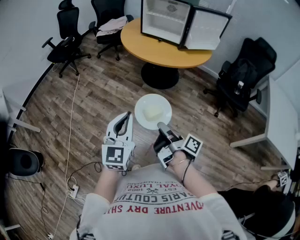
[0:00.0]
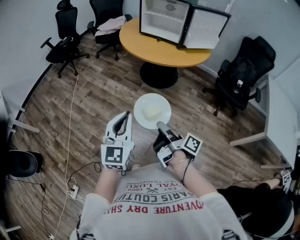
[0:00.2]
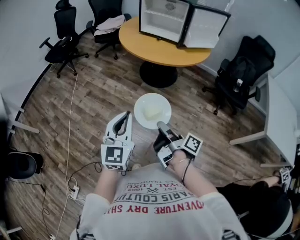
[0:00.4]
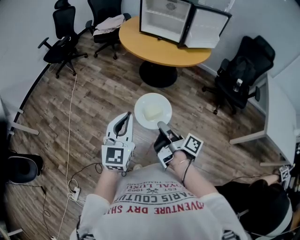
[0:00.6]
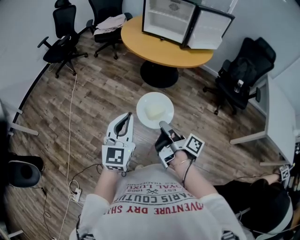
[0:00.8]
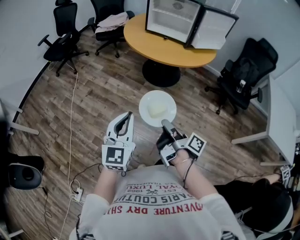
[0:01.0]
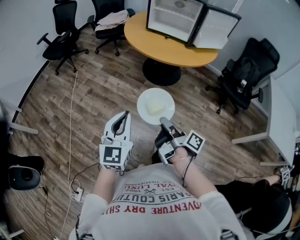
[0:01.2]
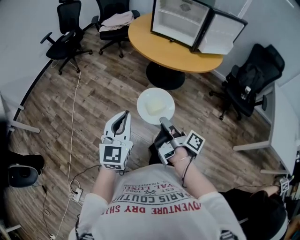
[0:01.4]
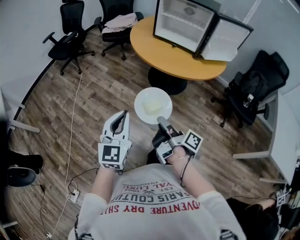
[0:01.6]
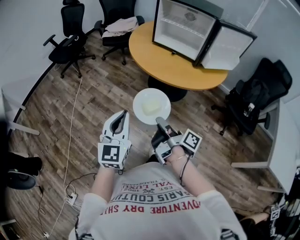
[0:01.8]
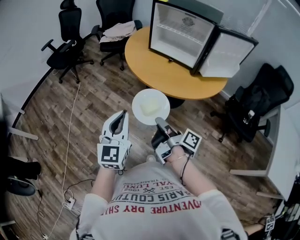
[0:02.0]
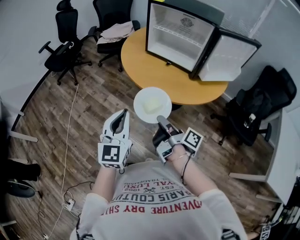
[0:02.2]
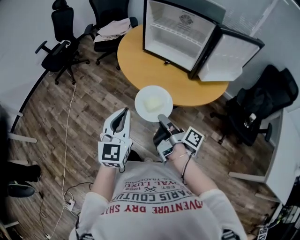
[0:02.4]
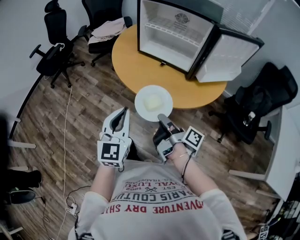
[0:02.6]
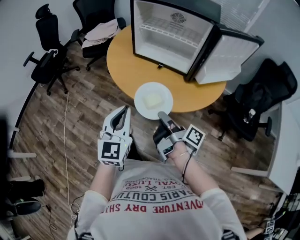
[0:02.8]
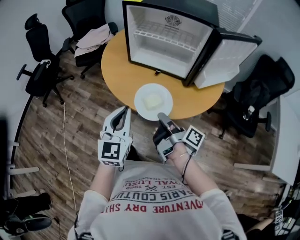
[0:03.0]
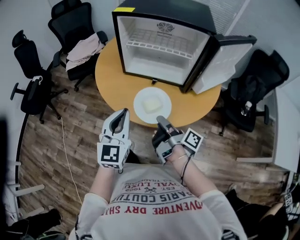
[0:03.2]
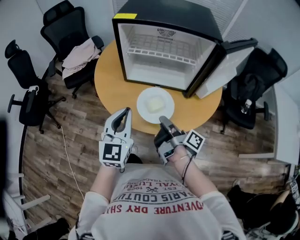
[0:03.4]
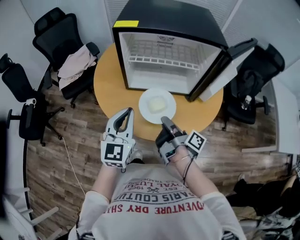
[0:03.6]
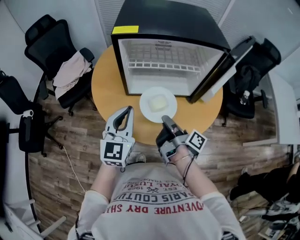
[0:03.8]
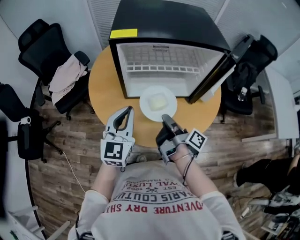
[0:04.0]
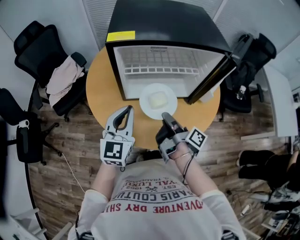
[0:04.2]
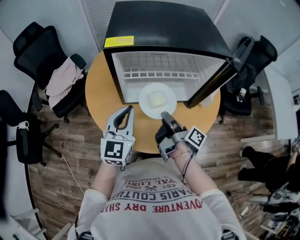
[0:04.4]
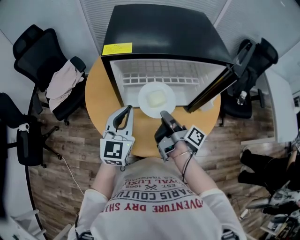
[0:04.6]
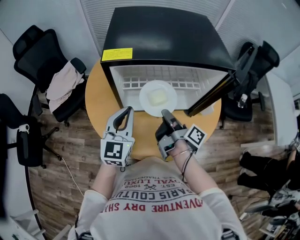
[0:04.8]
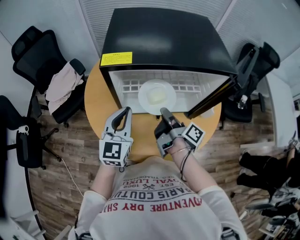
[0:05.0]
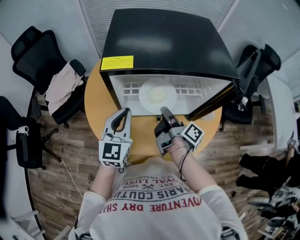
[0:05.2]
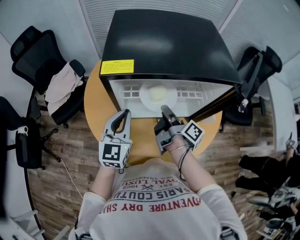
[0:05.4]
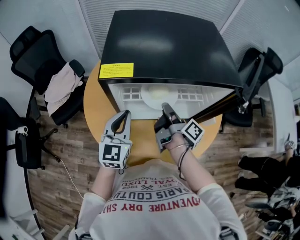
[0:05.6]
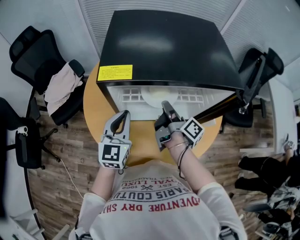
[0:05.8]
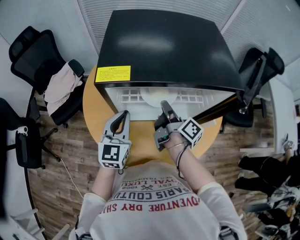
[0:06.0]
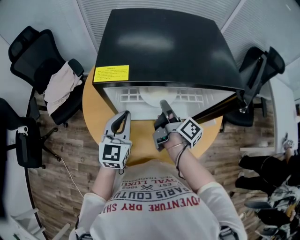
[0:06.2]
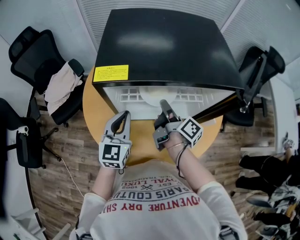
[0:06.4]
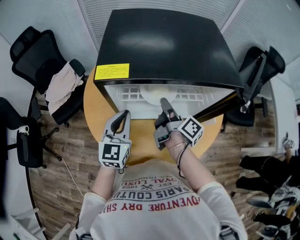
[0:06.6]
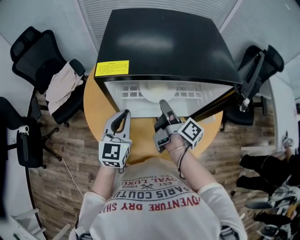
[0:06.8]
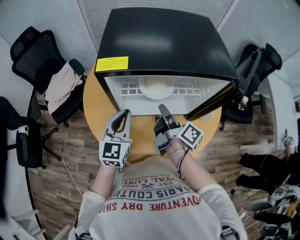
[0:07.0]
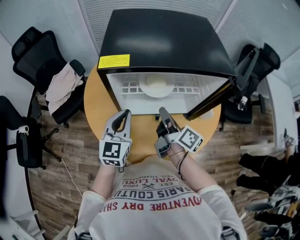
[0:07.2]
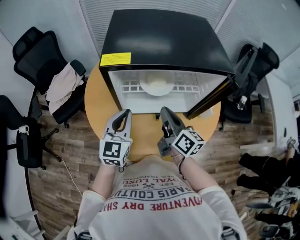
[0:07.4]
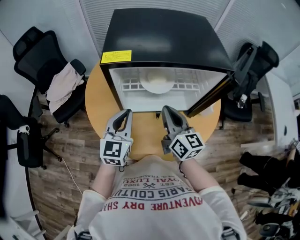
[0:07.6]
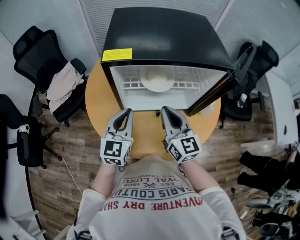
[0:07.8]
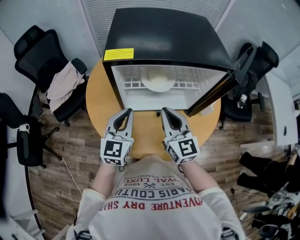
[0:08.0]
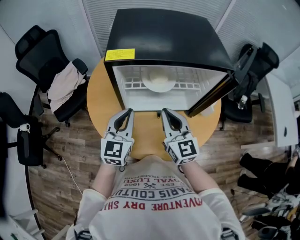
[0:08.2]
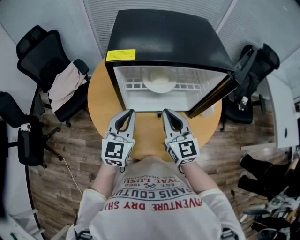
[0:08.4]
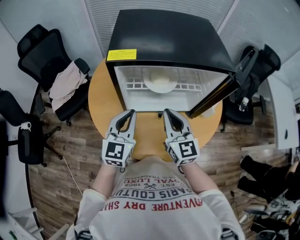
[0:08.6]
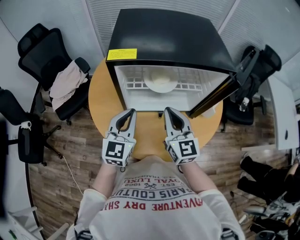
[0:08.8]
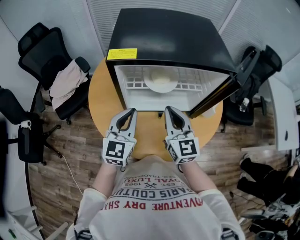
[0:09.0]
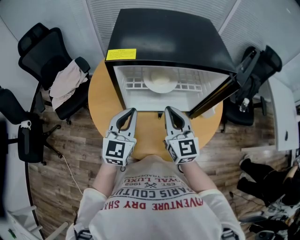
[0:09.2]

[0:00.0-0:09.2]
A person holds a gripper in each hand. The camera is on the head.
0:00.0 to 0:01.6: The left gripper ends up some 15 cm from where it was.
0:01.6 to 0:03.0: The left gripper shifts by approximately 40 cm.
0:03.0 to 0:04.6: The left gripper moves approximately 30 cm, and turns by approximately 30 degrees.
0:04.6 to 0:06.2: The left gripper shifts by approximately 10 cm.
0:06.2 to 0:07.6: The left gripper shifts by some 5 cm.

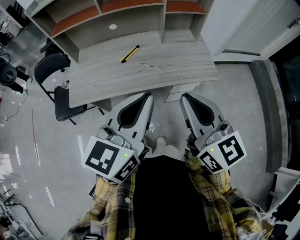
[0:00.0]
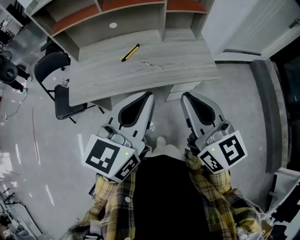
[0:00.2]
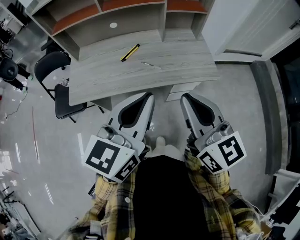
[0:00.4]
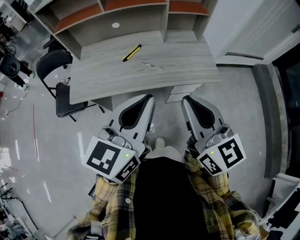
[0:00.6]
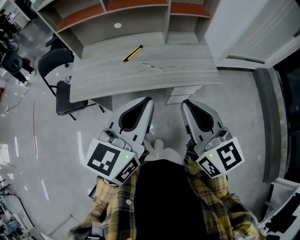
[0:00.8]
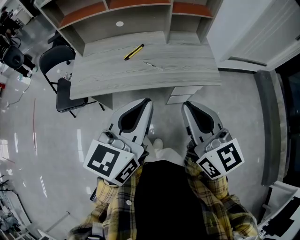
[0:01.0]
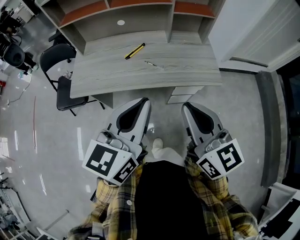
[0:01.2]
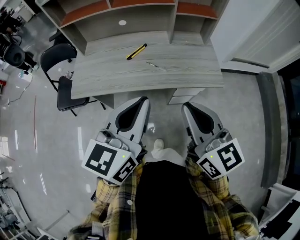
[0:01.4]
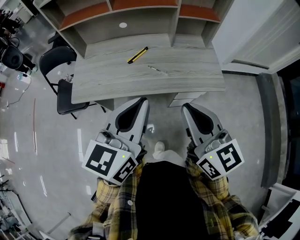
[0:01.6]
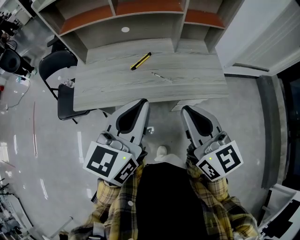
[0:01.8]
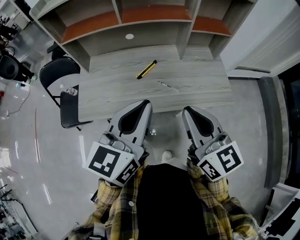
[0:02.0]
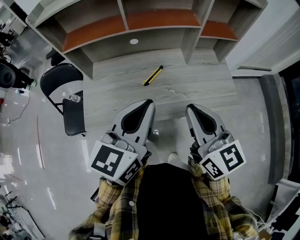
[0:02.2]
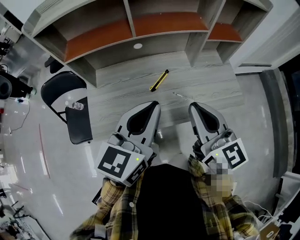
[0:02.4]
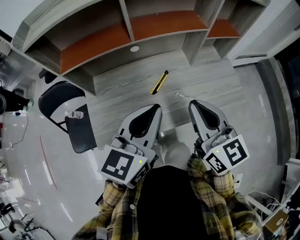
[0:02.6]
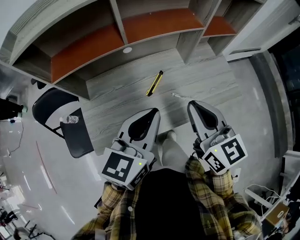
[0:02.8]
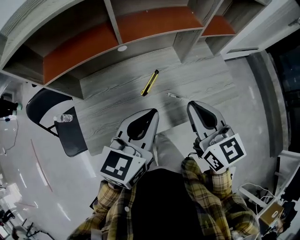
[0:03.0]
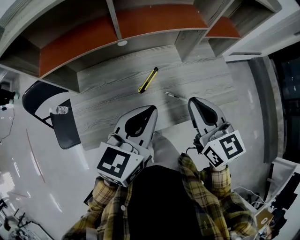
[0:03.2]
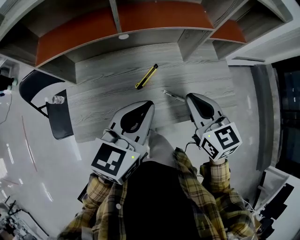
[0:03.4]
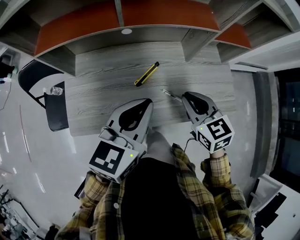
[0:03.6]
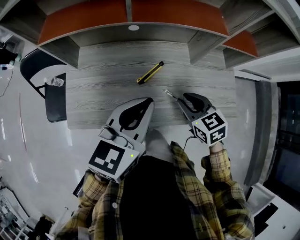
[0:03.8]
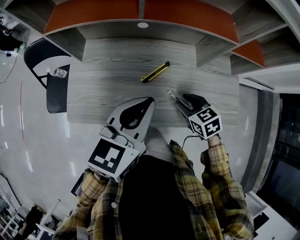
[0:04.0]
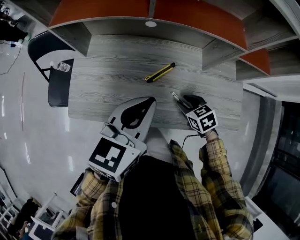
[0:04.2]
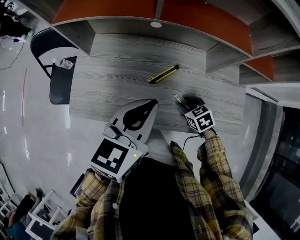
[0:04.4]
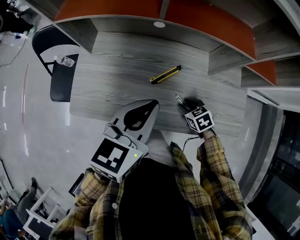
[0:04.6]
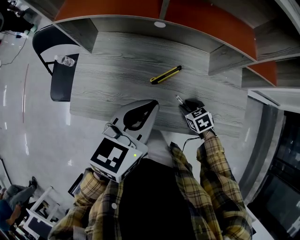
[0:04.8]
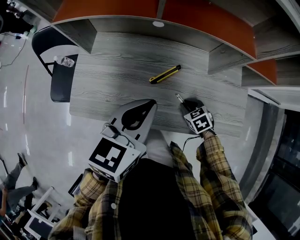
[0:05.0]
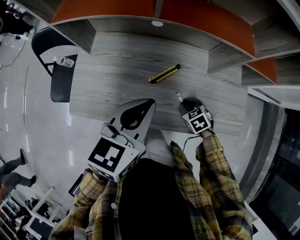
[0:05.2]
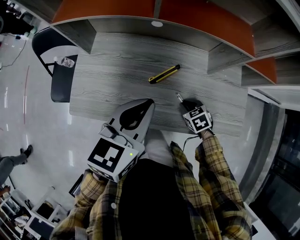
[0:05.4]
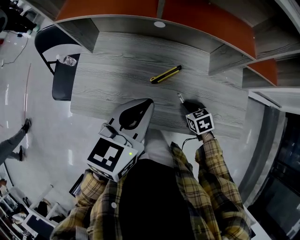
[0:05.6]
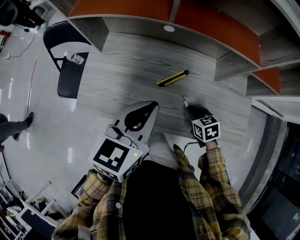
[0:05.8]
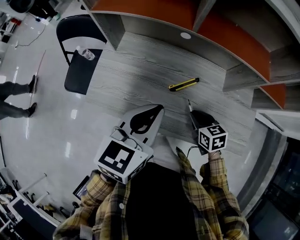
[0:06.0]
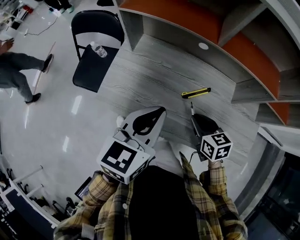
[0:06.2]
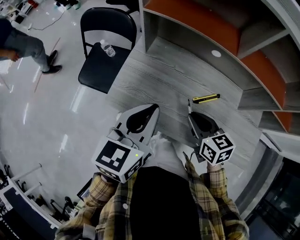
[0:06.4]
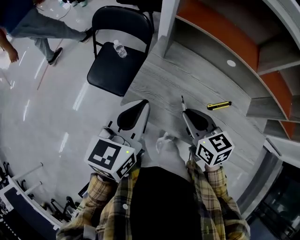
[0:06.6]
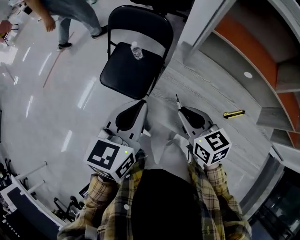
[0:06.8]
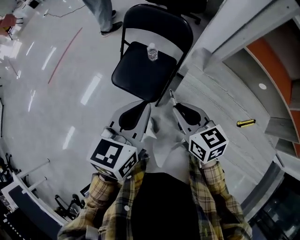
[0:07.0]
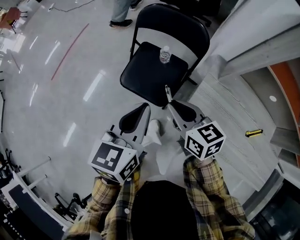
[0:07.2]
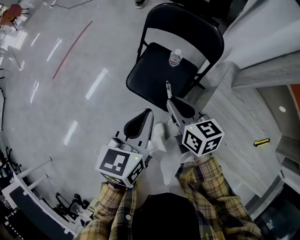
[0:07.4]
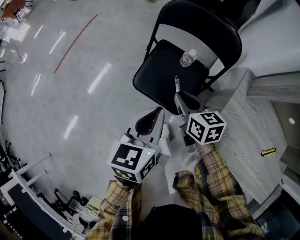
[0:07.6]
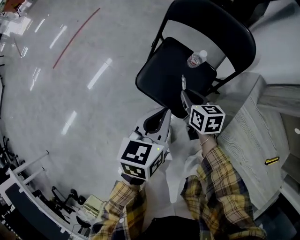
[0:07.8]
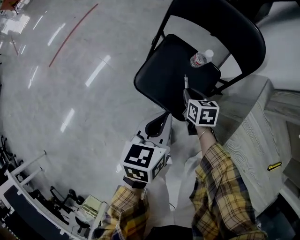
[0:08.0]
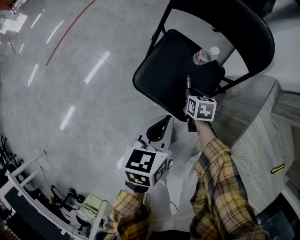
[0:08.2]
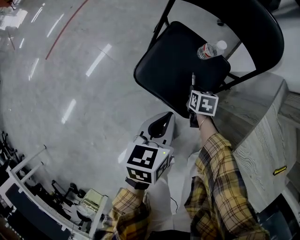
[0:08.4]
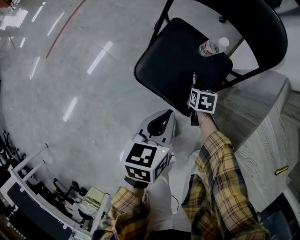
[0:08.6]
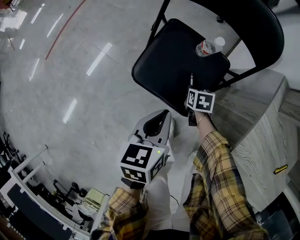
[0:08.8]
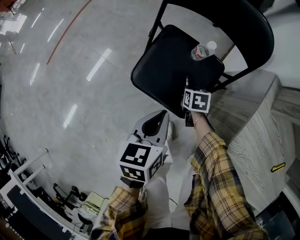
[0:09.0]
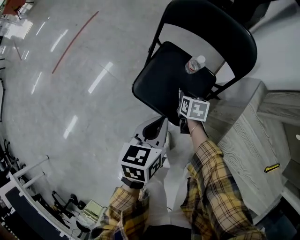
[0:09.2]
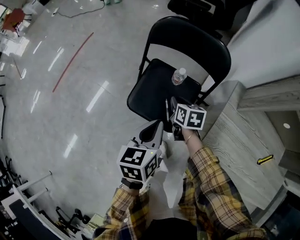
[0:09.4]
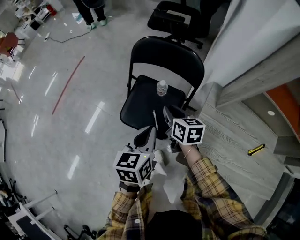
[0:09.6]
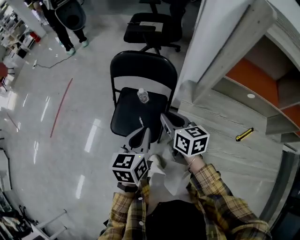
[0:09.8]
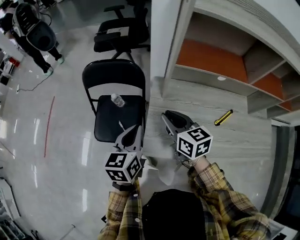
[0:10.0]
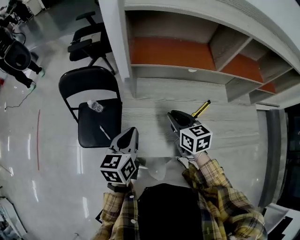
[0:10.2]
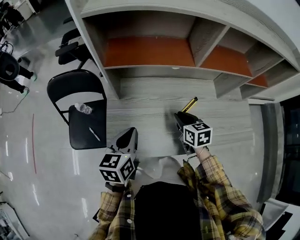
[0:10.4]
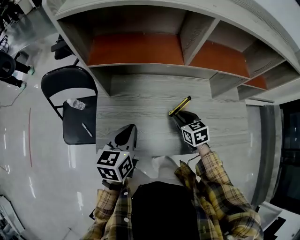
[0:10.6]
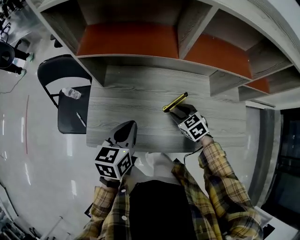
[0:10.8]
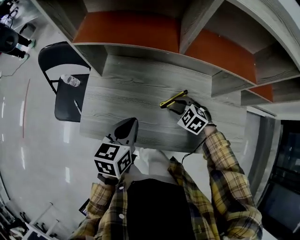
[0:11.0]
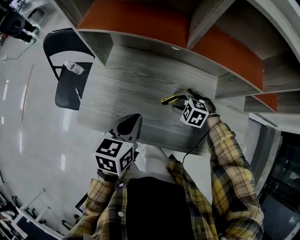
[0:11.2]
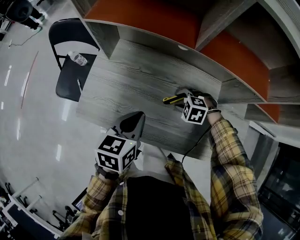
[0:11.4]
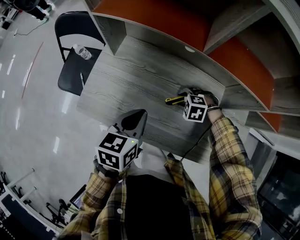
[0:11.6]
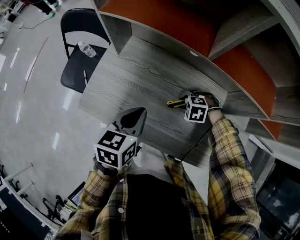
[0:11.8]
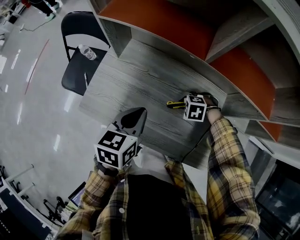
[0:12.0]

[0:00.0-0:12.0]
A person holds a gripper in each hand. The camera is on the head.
0:00.0 to 0:01.6: The grippers stay close to where they were, moving slightly.
0:01.6 to 0:03.0: Both grippers travel together forward and to the left, about 25 cm. The left gripper rotates approximately 20 degrees.
0:03.0 to 0:04.4: The right gripper goes approximately 30 cm downward, tilts its fingers some 40 degrees downward, and opens its fingers; the left gripper changes place by some 5 cm, and rotates roughly 20 degrees.
0:04.4 to 0:06.0: The right gripper is displaced upward by approximately 5 cm, and closes its fingers.
0:06.0 to 0:07.6: The pair of grippers is taken approximately 60 cm. The left gripper changes its angle by roughly 30 degrees, while the right gripper turns by approximately 20 degrees.
0:07.6 to 0:09.0: The left gripper moves downward, approximately 15 cm. Meanwhile the right gripper is displaced downward by approximately 30 cm, and tips its fingers downward by some 30 degrees.
0:09.0 to 0:10.4: The left gripper changes place by roughly 50 cm, and changes its angle by roughly 40 degrees. Meanwhile the right gripper ends up some 70 cm from where it was, and turns by roughly 40 degrees.
0:10.4 to 0:12.0: The right gripper travels downward by about 15 cm, and rotates around the line of its fingers by approximately 90 degrees, counterclockwise from behind, while the left gripper changes place by approximately 15 cm.

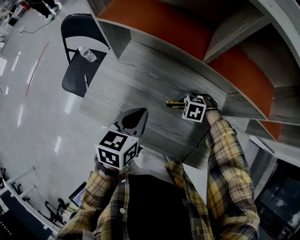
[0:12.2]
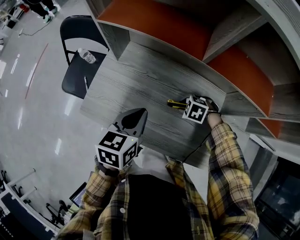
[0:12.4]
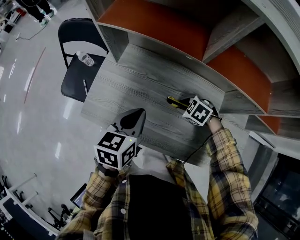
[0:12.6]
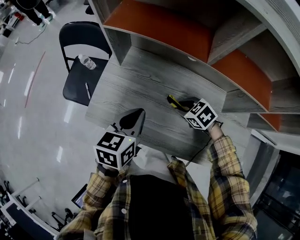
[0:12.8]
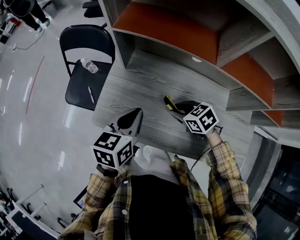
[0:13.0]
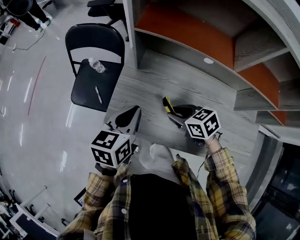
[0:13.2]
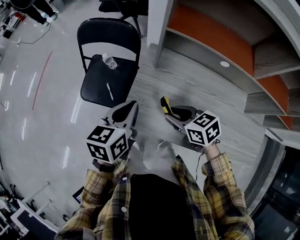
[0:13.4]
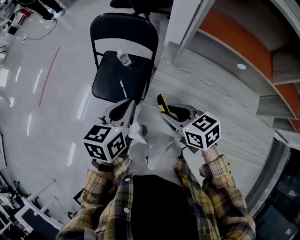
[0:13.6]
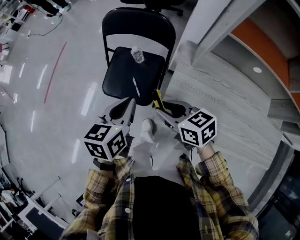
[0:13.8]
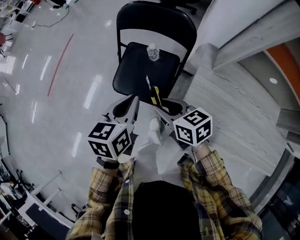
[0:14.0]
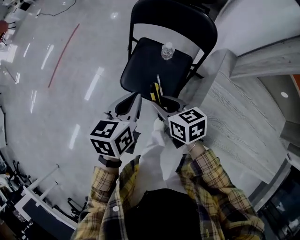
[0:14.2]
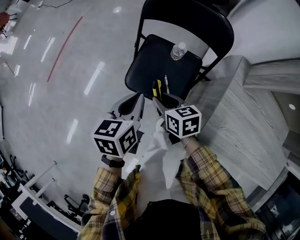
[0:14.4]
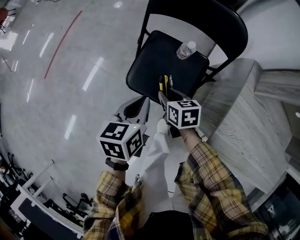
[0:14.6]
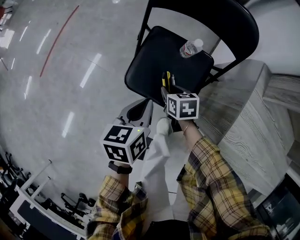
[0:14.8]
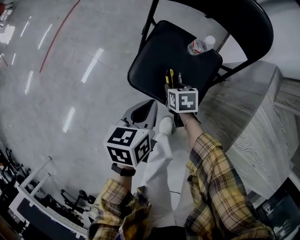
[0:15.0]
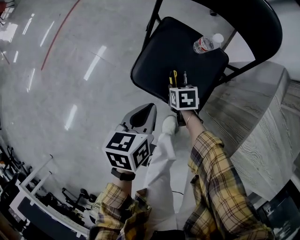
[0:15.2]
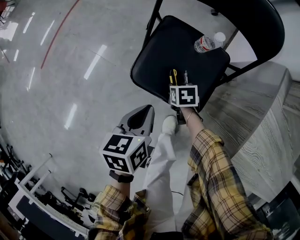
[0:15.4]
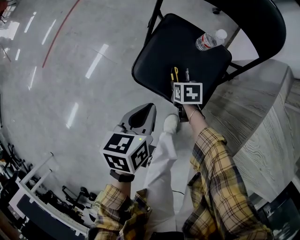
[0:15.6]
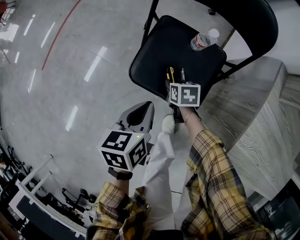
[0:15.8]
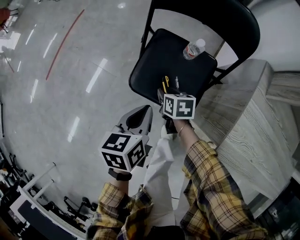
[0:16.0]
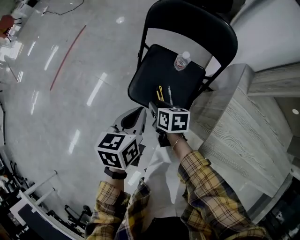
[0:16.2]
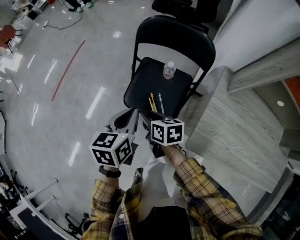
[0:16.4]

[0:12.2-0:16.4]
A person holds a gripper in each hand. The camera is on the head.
0:12.2 to 0:13.6: The left gripper moves about 35 cm. The right gripper shifts by some 40 cm, and angles its fingers upward, by about 40 degrees.
0:13.6 to 0:15.0: The grippers both shift downward, to the left and forward by roughly 50 cm. The right gripper changes its angle by some 30 degrees. Meanwhile the left gripper swivels some 20 degrees.
0:15.0 to 0:16.4: Both grippers travel together upward, some 25 cm. The right gripper turns by roughly 30 degrees.
